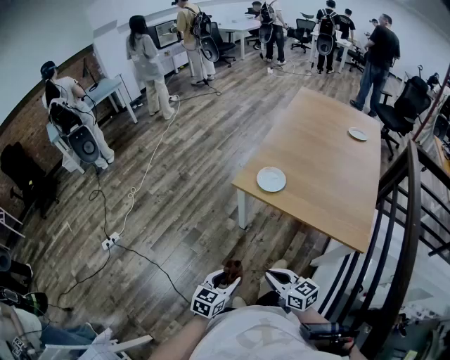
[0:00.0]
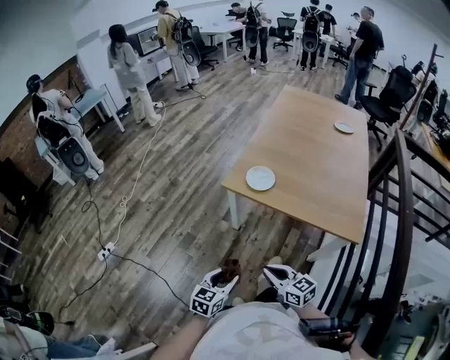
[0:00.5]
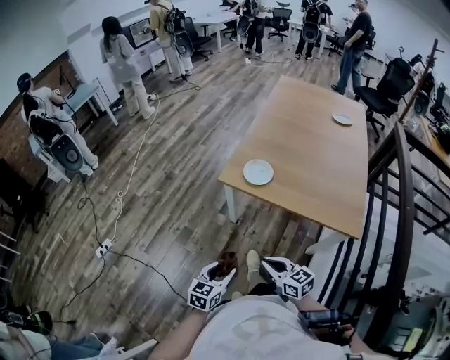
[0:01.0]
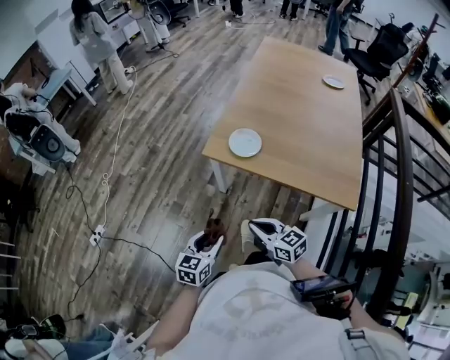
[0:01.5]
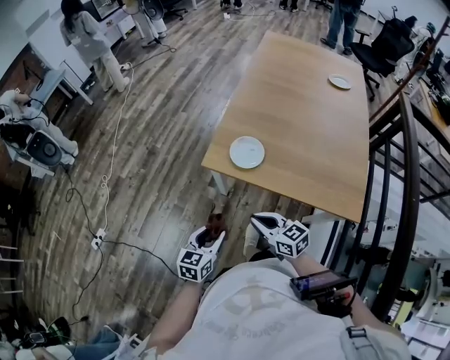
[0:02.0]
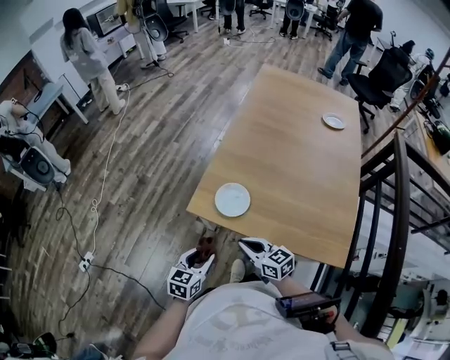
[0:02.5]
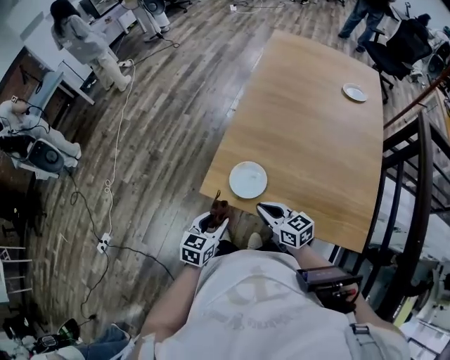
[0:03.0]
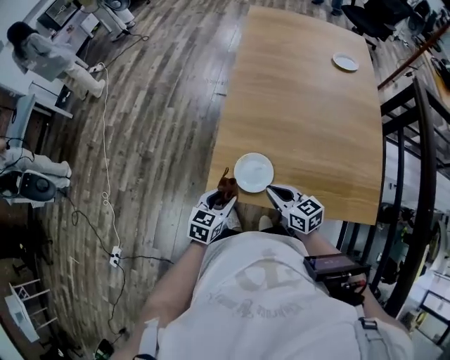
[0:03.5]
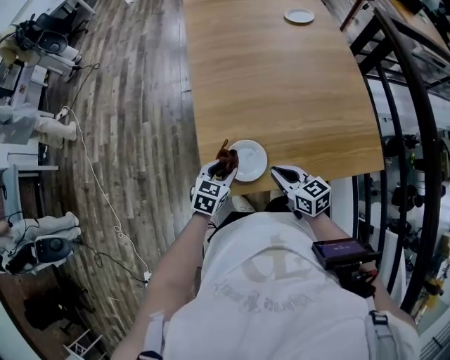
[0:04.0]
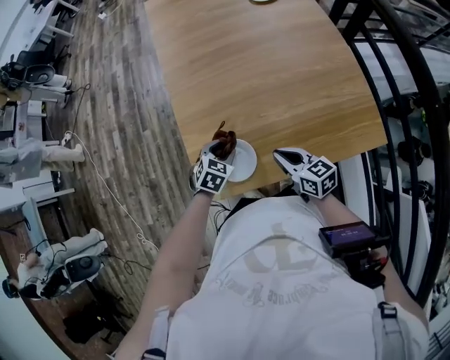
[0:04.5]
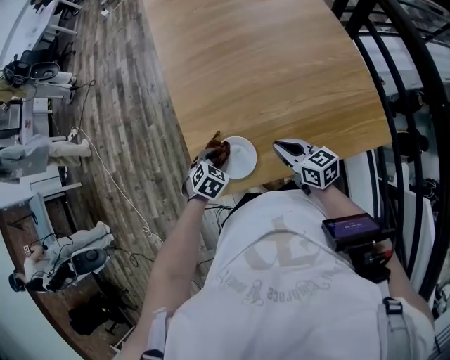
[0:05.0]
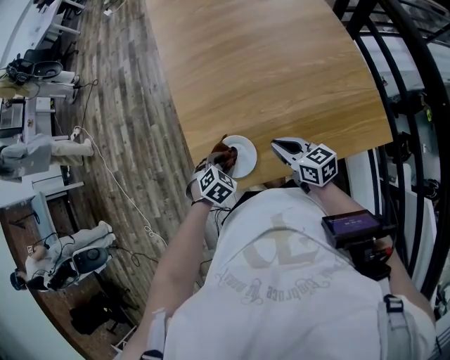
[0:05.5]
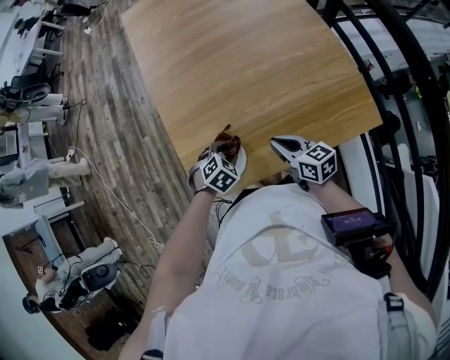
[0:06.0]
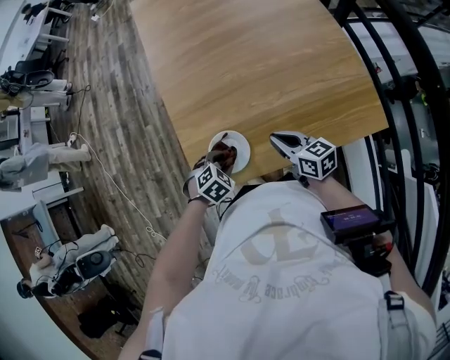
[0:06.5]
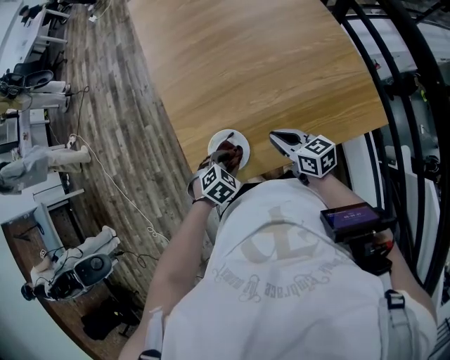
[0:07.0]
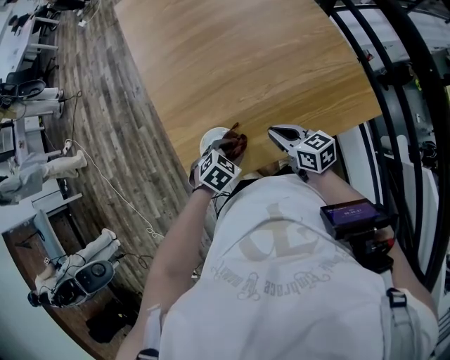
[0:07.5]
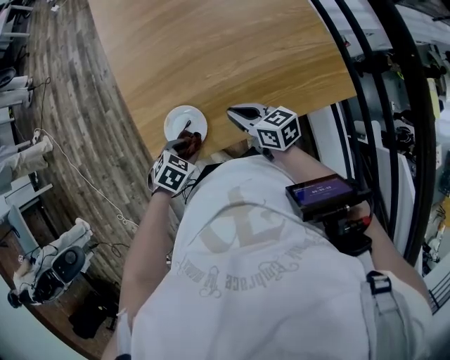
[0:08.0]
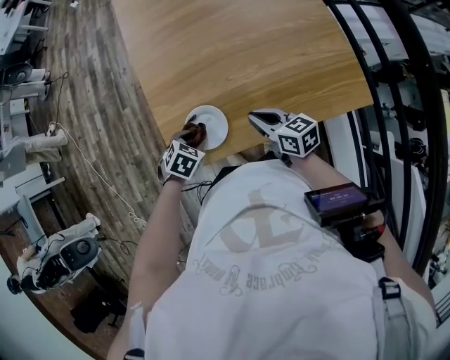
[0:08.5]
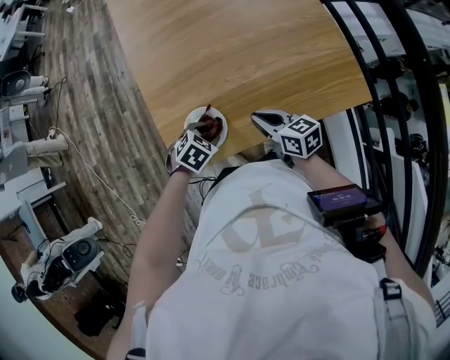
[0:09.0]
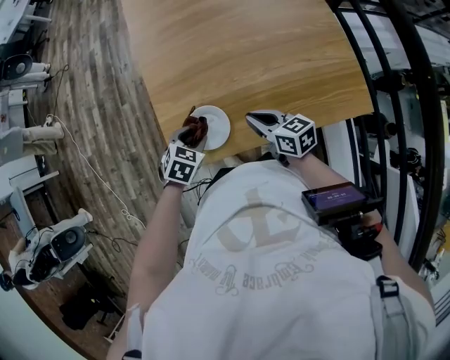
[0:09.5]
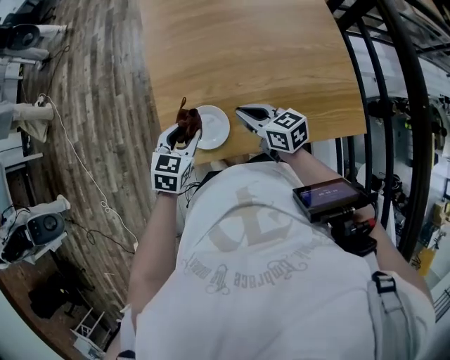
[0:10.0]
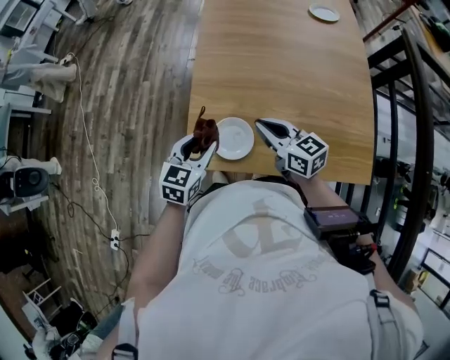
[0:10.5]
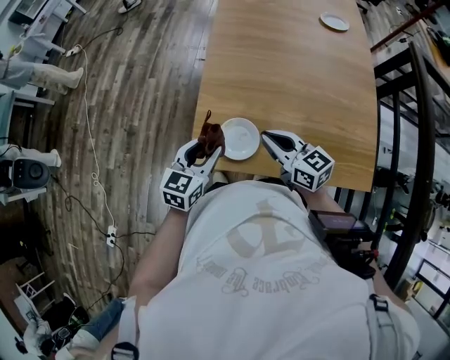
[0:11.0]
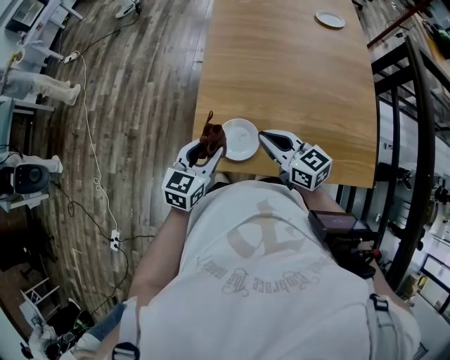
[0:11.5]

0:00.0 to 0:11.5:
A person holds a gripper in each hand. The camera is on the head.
0:00.0 to 0:02.0: Both grippers travel together forward, about 20 cm.
0:02.0 to 0:04.0: The right gripper moves approximately 25 cm, and swivels about 40 degrees; the left gripper moves roughly 35 cm, and swivels about 40 degrees.
0:04.0 to 0:06.0: The left gripper swings left and right, about 10 cm each way, with 2 reversals, and rotates some 40 degrees. The right gripper shifts approximately 10 cm to the right.
0:06.0 to 0:07.5: The left gripper shifts by some 5 cm.
0:07.5 to 0:09.5: The left gripper swings left and right, some 10 cm each way, with 2 reversals, and turns by roughly 20 degrees.
0:09.5 to 0:11.5: The left gripper is displaced upward by roughly 10 cm, and tips its fingers upward by some 40 degrees; the right gripper shifts some 10 cm upward and to the left, and swivels roughly 30 degrees.

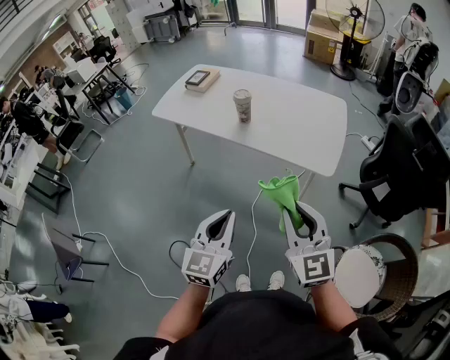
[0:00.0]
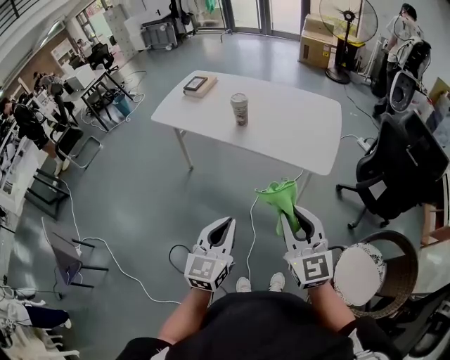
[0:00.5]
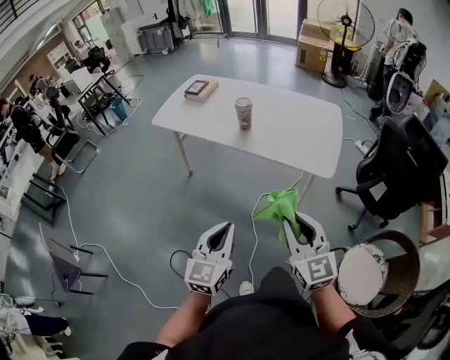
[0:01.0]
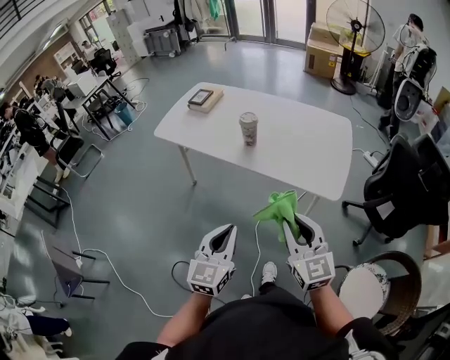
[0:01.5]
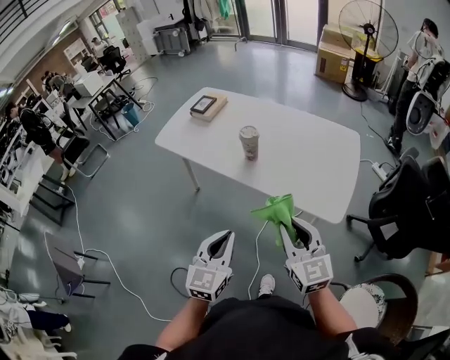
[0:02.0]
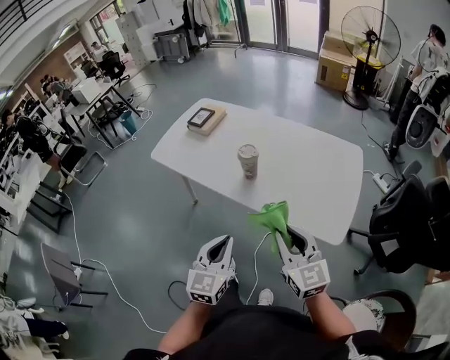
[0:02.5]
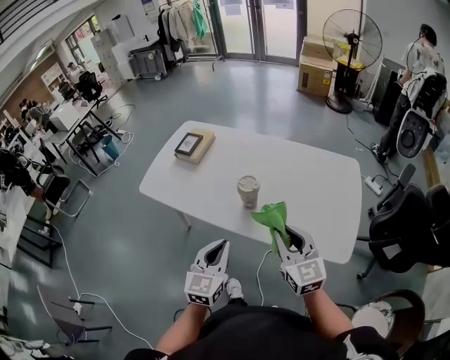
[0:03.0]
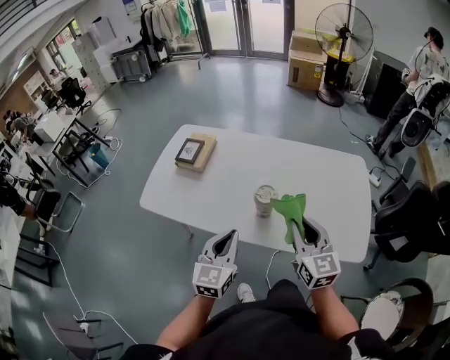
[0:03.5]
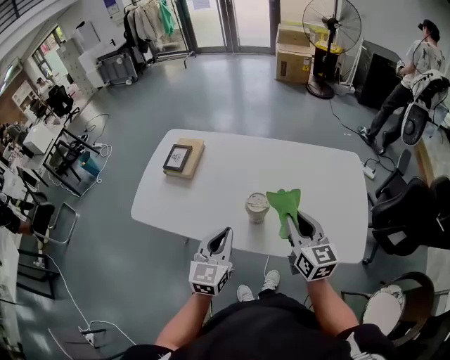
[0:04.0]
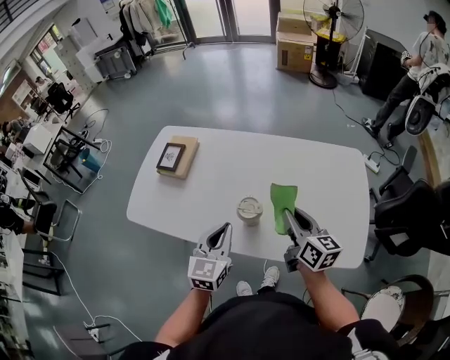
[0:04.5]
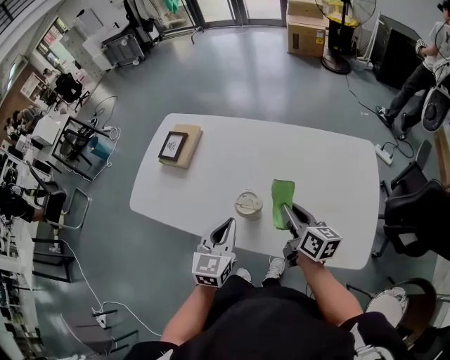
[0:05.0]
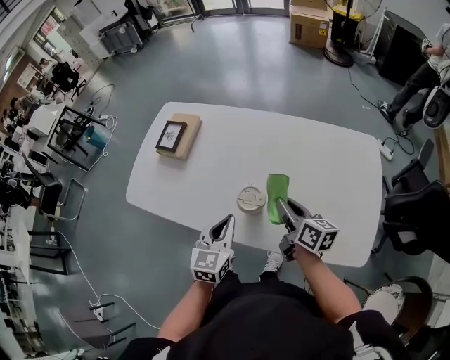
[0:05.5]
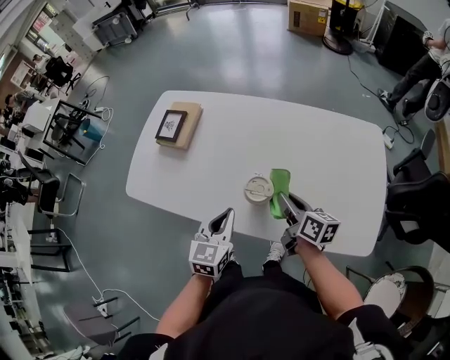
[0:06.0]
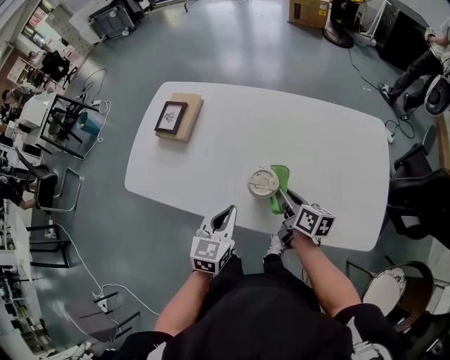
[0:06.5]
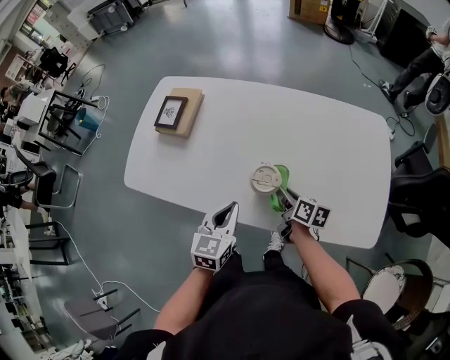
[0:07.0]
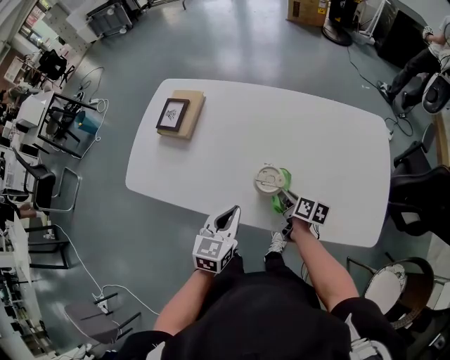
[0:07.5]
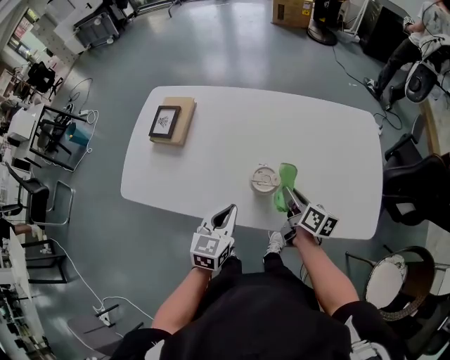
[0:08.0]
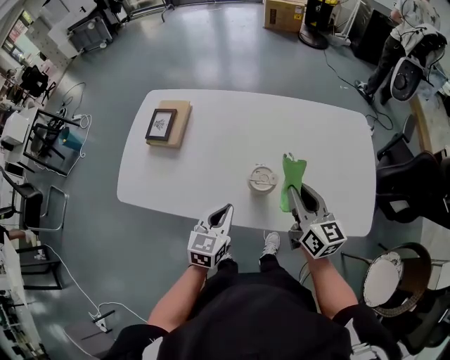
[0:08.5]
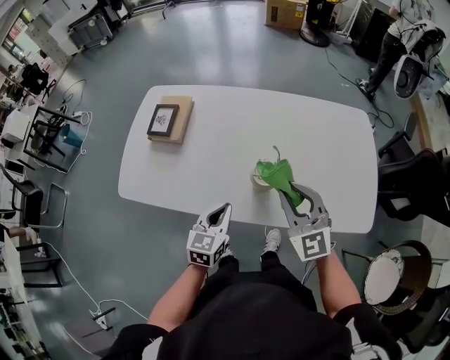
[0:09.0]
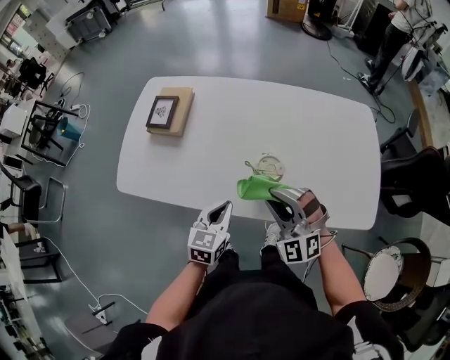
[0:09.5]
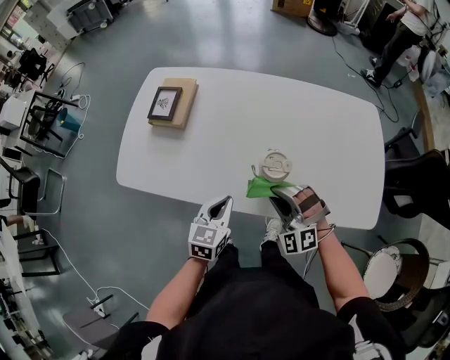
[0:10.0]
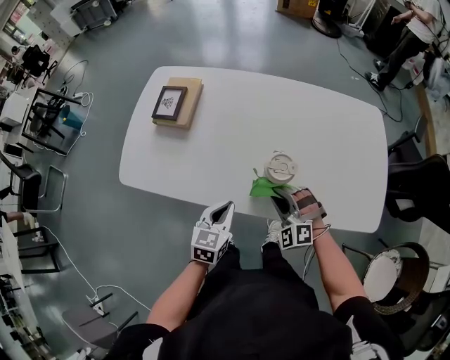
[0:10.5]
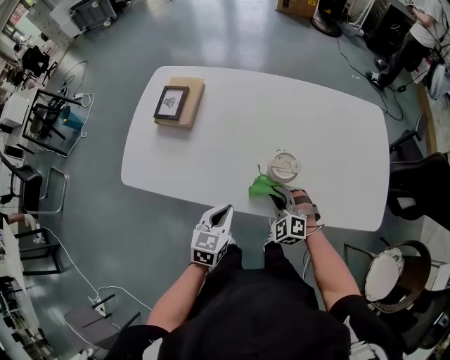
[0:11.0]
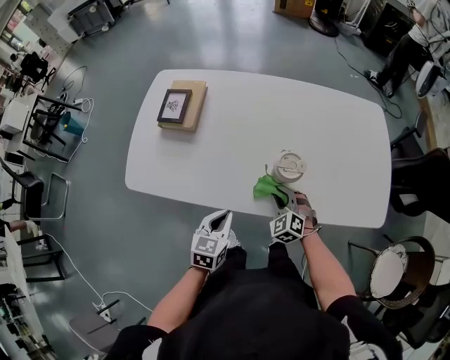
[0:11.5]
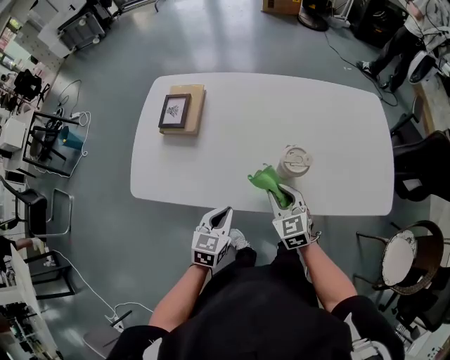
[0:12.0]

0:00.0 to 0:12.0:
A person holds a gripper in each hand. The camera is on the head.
0:00.0 to 0:02.0: Both grippers move forward, roughly 15 cm.
0:02.0 to 0:04.0: The two grippers go approximately 35 cm forward. The right gripper rotates about 30 degrees.
0:04.0 to 0:06.0: The right gripper travels downward and forward by some 15 cm, and turns by some 40 degrees. The left gripper travels downward by about 10 cm.
0:06.0 to 0:08.0: The right gripper moves some 15 cm downward and comes back.
0:08.0 to 0:10.0: The left gripper changes place by approximately 5 cm; the right gripper heads to the left and backward, covering about 10 cm, moves approximately 15 cm upward and comes back, and rolls counterclockwise, seen from behind, by approximately 120 degrees.
0:10.0 to 0:12.0: Both grippers travel together to the left, about 5 cm. The right gripper reaches approximately 10 cm downward, then returns, and rotates around the line of its fingers by roughly 60 degrees, clockwise from behind.

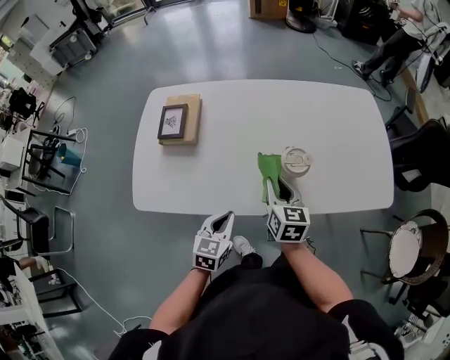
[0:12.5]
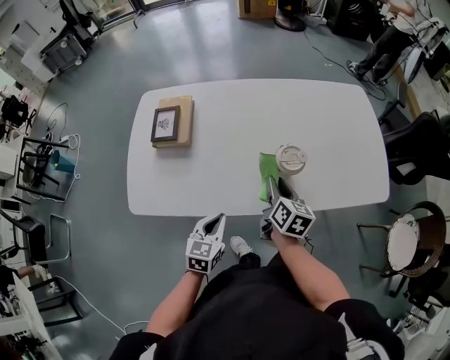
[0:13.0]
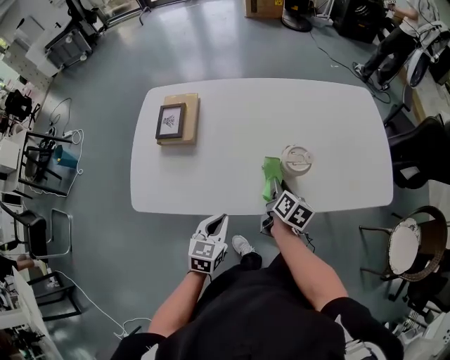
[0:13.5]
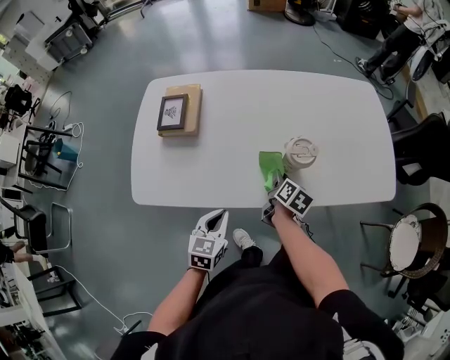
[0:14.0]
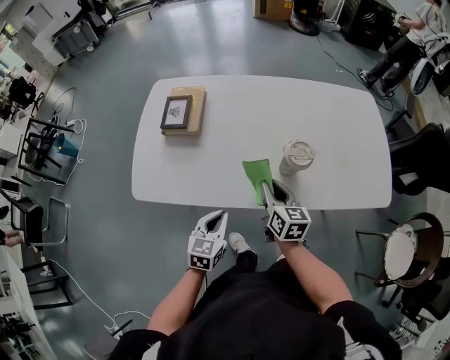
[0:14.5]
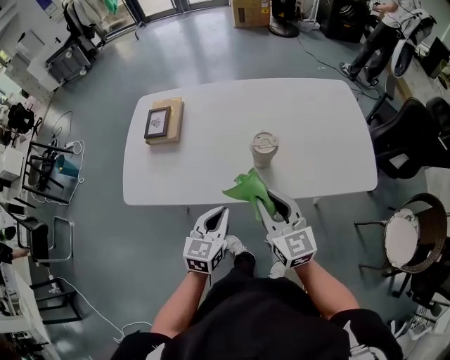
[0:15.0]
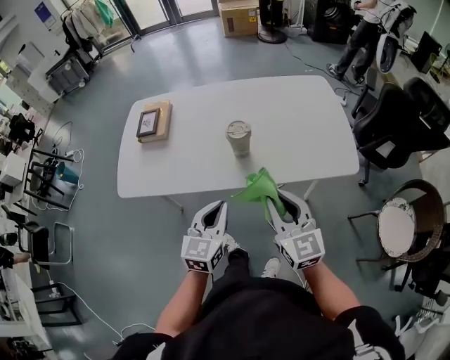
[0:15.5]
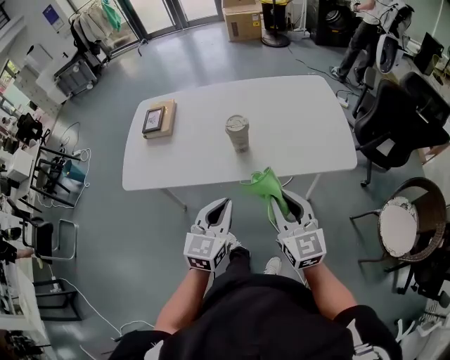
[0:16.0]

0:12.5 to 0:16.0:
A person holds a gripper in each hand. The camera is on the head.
0:12.5 to 0:14.5: The right gripper moves roughly 10 cm downward and comes back.
0:14.5 to 0:16.0: The right gripper travels backward, to the right and upward by approximately 35 cm, and changes its angle by some 30 degrees; the left gripper moves to the right, upward and backward, some 25 cm.
